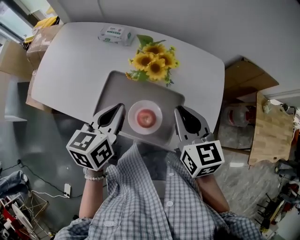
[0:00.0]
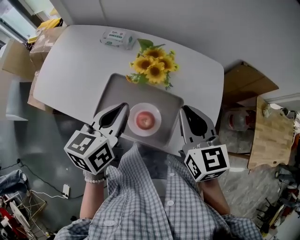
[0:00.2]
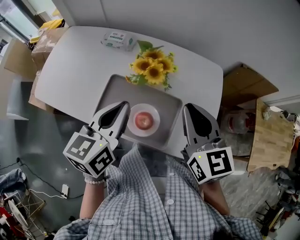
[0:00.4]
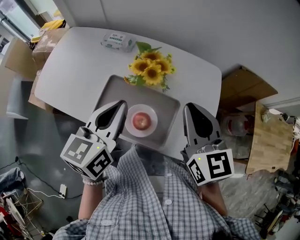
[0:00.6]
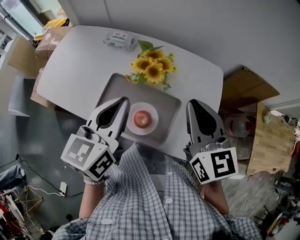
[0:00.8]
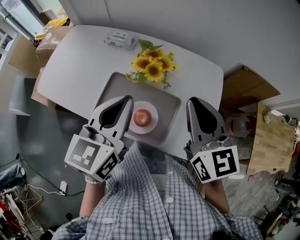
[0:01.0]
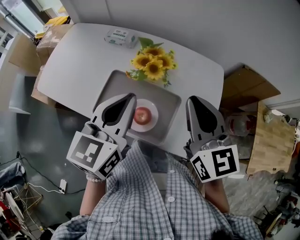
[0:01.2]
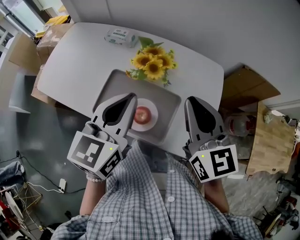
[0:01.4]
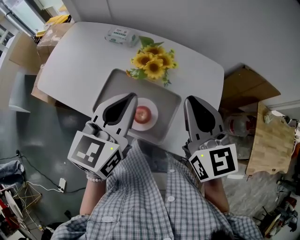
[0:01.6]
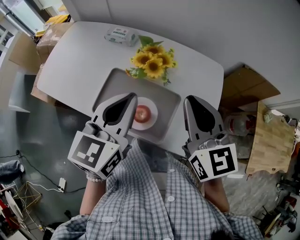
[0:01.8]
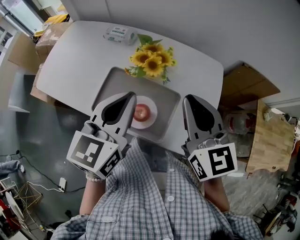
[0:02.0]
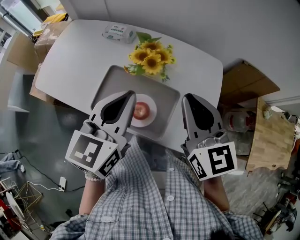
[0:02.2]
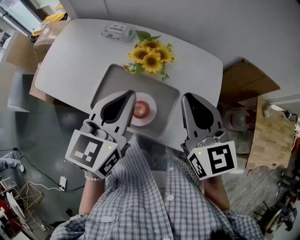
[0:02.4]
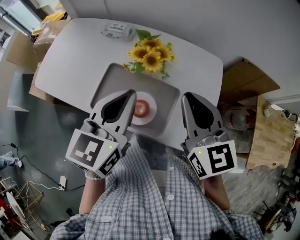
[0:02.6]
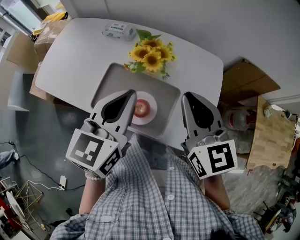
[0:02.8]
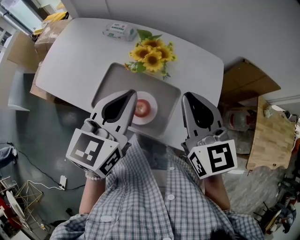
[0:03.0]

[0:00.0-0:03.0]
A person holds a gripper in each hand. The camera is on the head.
0:00.0 to 0:01.6: The left gripper moves upward and to the right, about 10 cm, and swivels roughly 20 degrees. Meanwhile the right gripper is displaced upward by roughly 10 cm.
0:01.6 to 0:03.0: The grippers make only small movements.

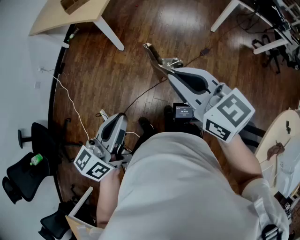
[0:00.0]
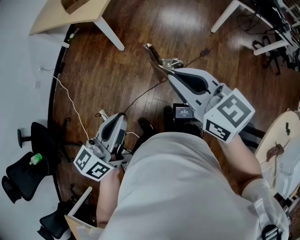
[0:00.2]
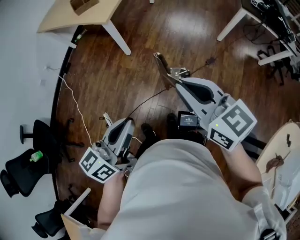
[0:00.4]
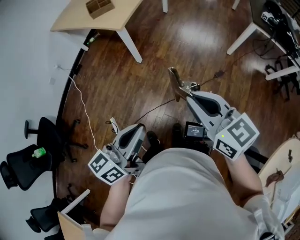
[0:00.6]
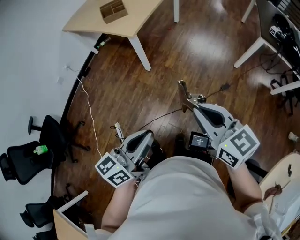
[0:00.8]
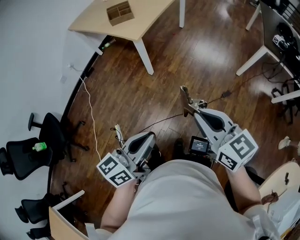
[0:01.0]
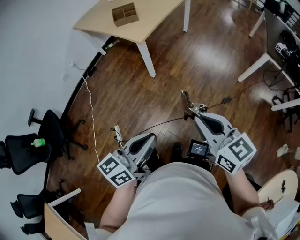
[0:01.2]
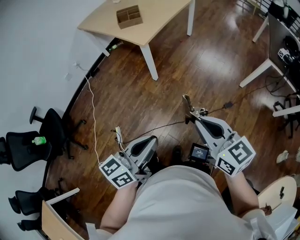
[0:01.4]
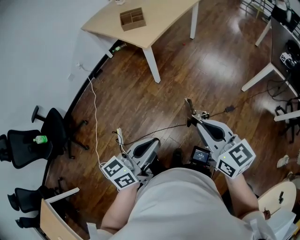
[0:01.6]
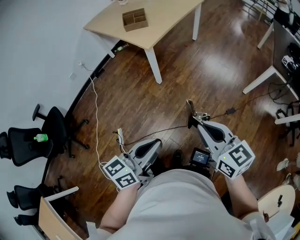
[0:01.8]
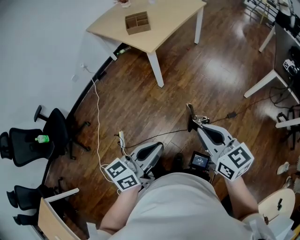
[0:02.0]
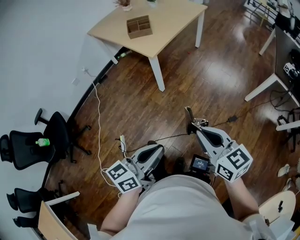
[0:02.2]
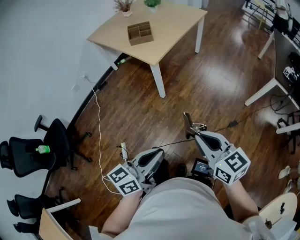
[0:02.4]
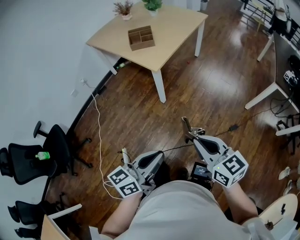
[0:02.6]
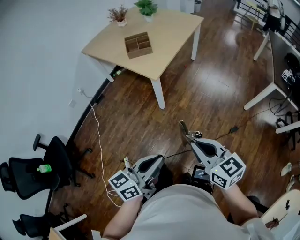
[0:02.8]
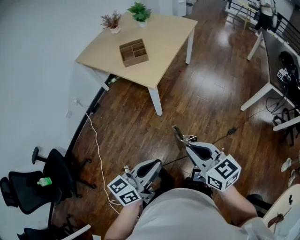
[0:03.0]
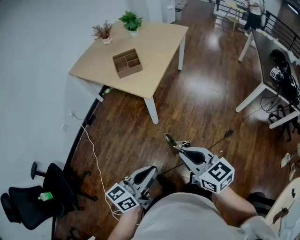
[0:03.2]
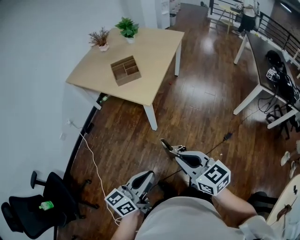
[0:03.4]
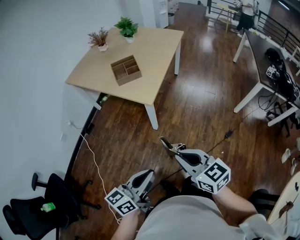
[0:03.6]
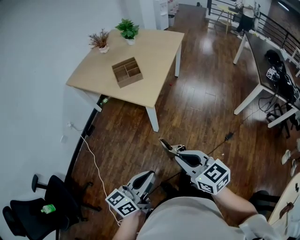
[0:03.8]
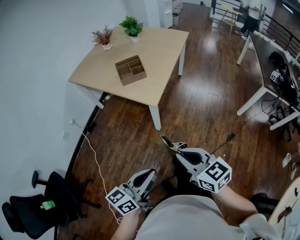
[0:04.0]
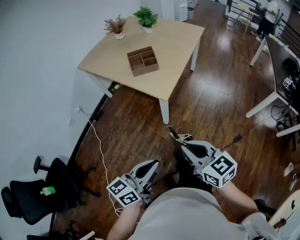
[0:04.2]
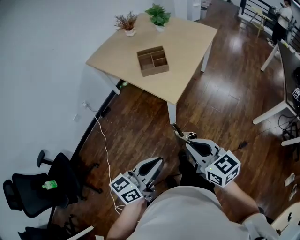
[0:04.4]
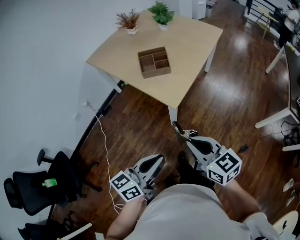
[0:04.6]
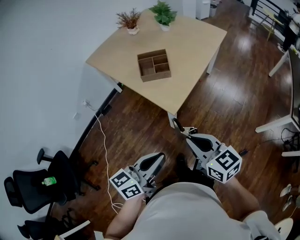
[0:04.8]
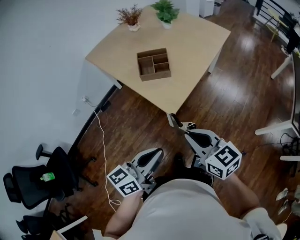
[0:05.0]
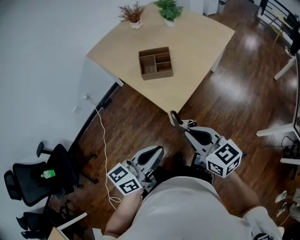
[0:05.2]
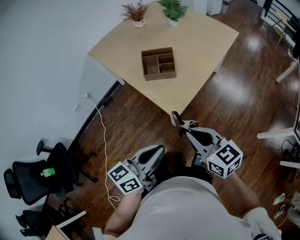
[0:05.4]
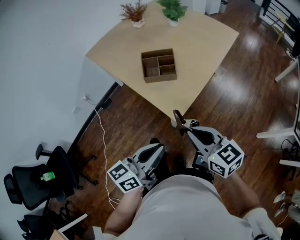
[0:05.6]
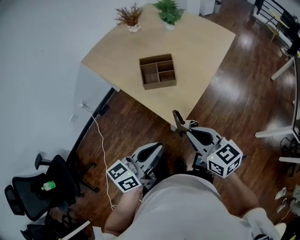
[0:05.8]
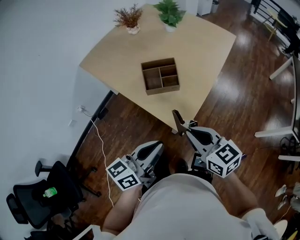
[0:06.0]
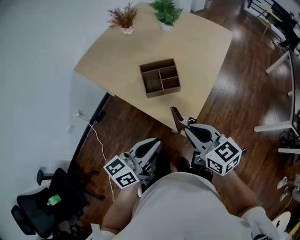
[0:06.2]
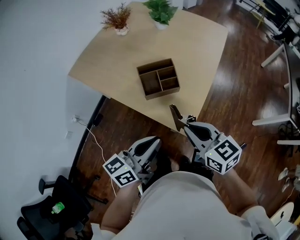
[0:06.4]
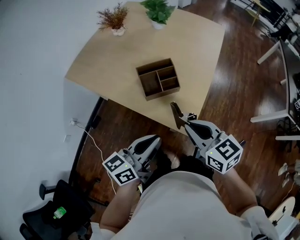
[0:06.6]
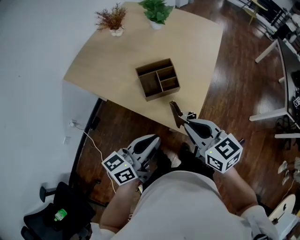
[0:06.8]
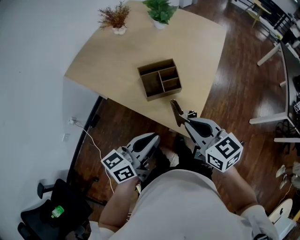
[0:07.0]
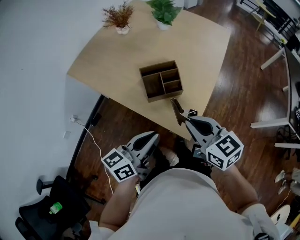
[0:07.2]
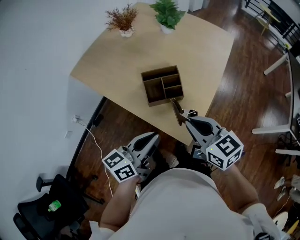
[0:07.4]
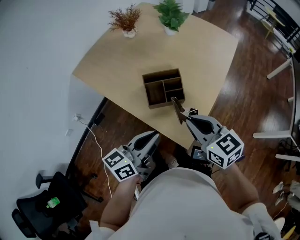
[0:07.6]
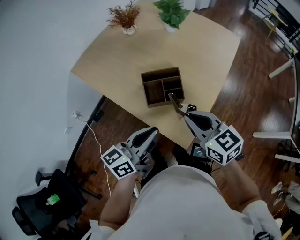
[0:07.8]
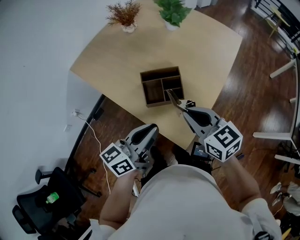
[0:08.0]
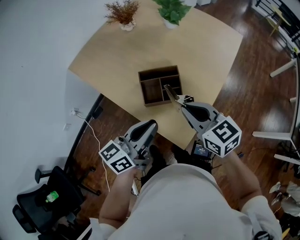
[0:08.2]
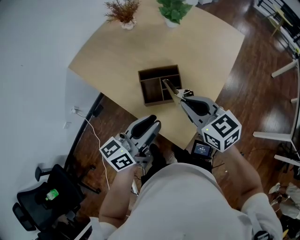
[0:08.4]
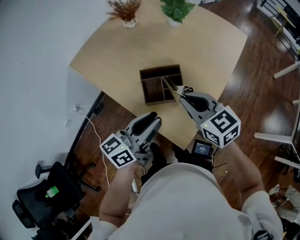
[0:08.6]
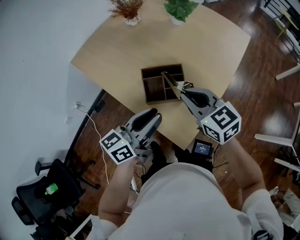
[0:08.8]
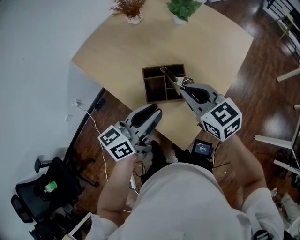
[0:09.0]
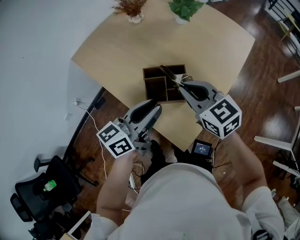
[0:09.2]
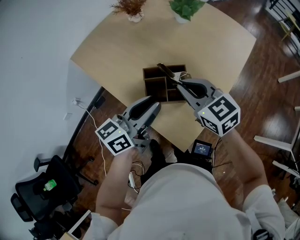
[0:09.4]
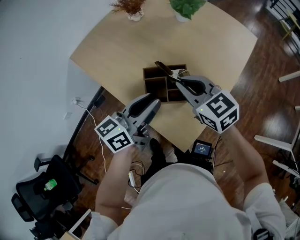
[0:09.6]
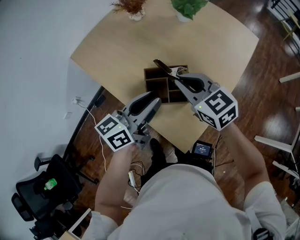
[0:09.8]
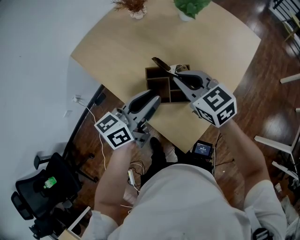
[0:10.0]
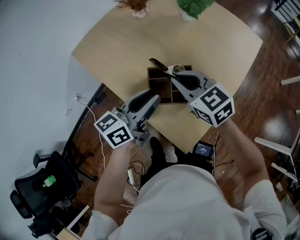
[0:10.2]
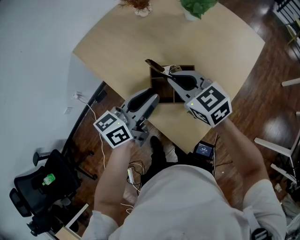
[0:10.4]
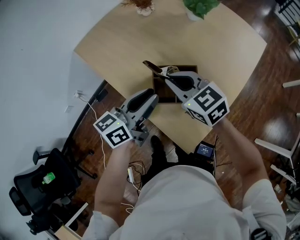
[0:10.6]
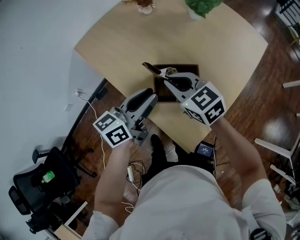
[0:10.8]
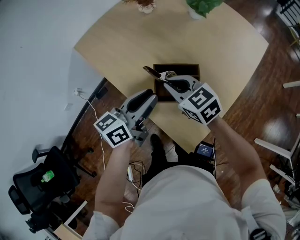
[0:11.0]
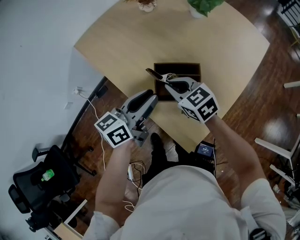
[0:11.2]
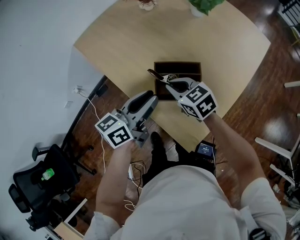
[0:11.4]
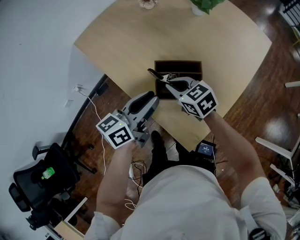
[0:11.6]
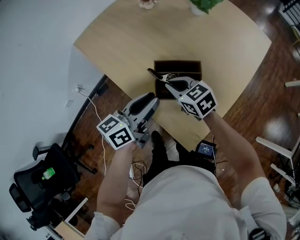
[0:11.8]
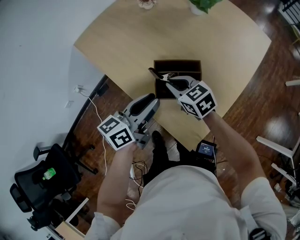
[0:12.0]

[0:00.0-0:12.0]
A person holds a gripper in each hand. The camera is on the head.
0:00.0 to 0:01.6: The left gripper shifts by approximately 5 cm.
0:01.6 to 0:03.0: The two grippers go approximately 20 cm forward and to the left.
0:03.0 to 0:04.4: The grippers both shift forward and to the left by some 15 cm.
0:04.4 to 0:06.0: The two grippers go approximately 30 cm forward.
0:06.0 to 0:07.6: The two grippers go some 15 cm forward.
0:07.6 to 0:09.0: Both grippers travel together forward, approximately 10 cm.
0:09.0 to 0:10.4: The left gripper heads forward, covering approximately 5 cm, while the right gripper is displaced to the left and forward by about 10 cm.
0:10.4 to 0:12.0: The right gripper moves downward, some 10 cm; the left gripper moves roughly 5 cm.

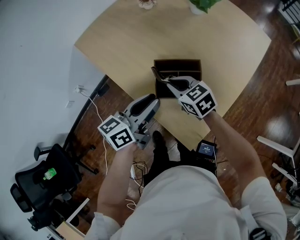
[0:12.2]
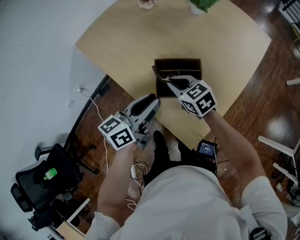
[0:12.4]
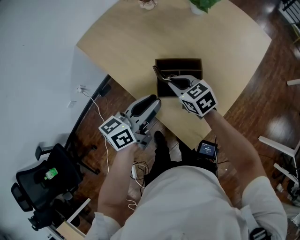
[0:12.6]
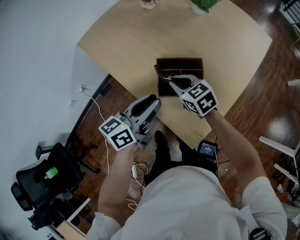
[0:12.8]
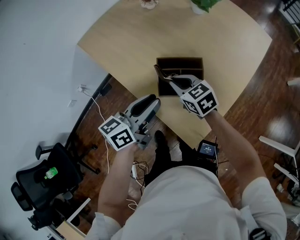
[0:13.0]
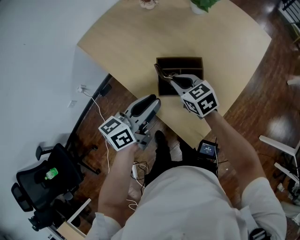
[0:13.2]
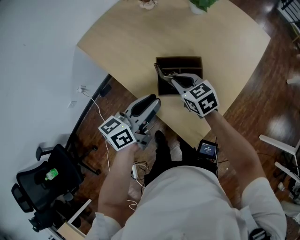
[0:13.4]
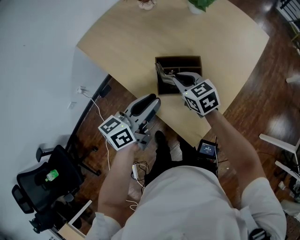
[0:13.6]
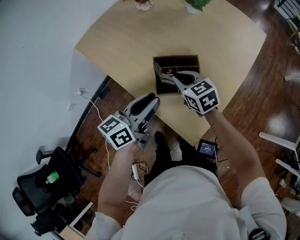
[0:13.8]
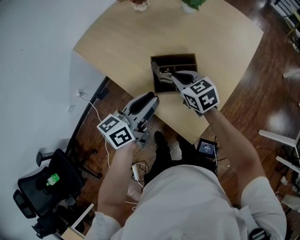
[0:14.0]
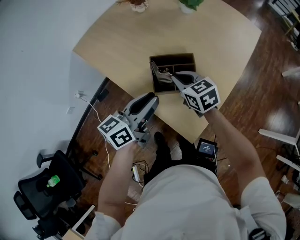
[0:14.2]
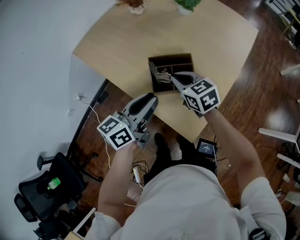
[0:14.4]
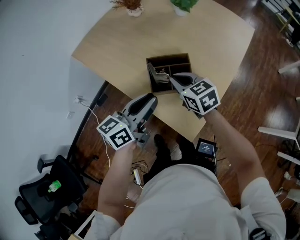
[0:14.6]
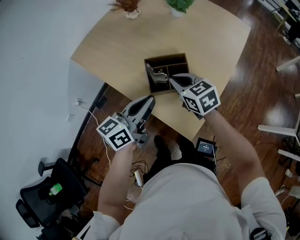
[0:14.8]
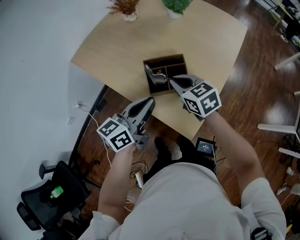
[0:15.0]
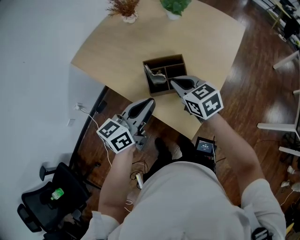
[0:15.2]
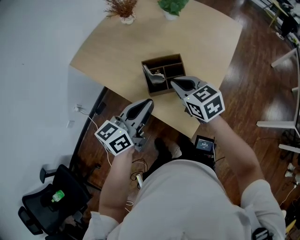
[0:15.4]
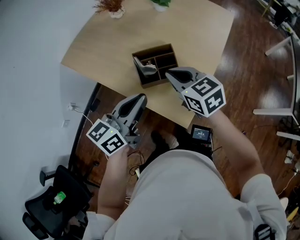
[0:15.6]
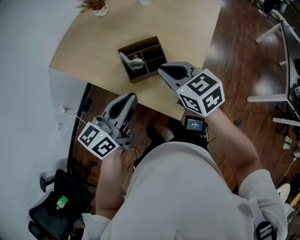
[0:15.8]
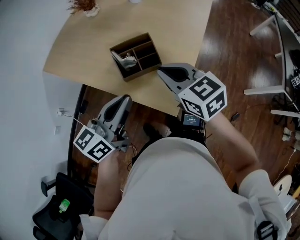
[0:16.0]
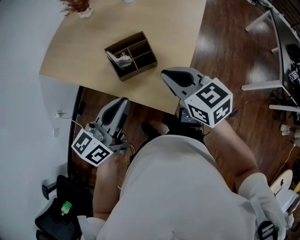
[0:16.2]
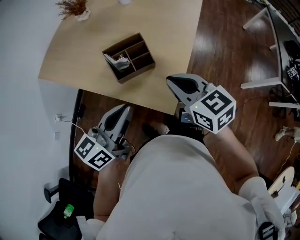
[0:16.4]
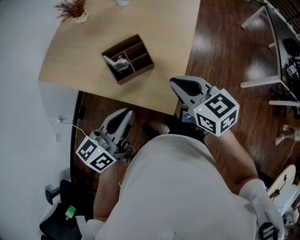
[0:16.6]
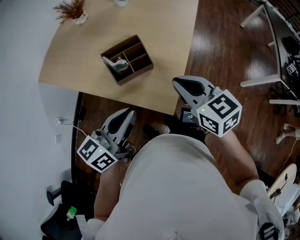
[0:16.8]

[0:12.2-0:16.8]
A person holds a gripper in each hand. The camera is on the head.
0:12.2 to 0:13.8: The grippers move only a little.
0:13.8 to 0:15.2: The left gripper ends up roughly 5 cm from where it was, while the right gripper goes about 10 cm upward and backward.
0:15.2 to 0:16.8: The right gripper is displaced to the right, backward and upward by some 20 cm. The left gripper moves backward, some 10 cm.

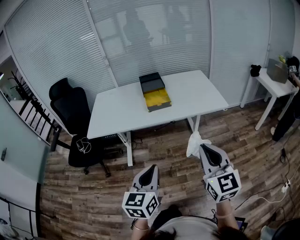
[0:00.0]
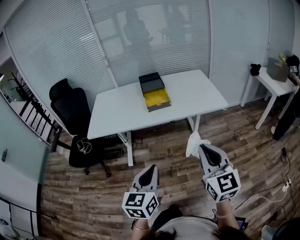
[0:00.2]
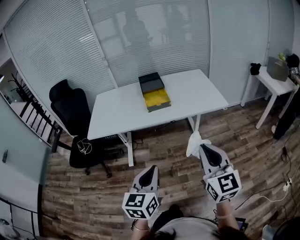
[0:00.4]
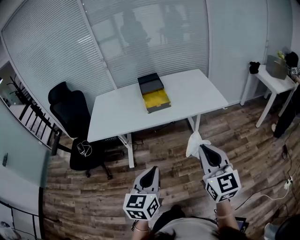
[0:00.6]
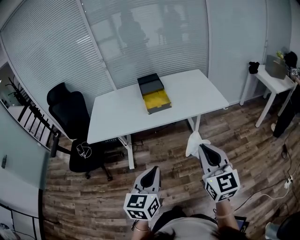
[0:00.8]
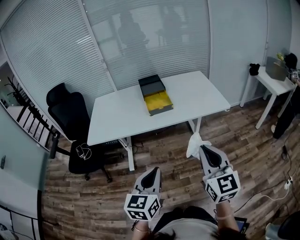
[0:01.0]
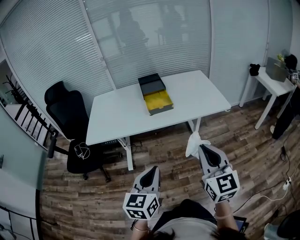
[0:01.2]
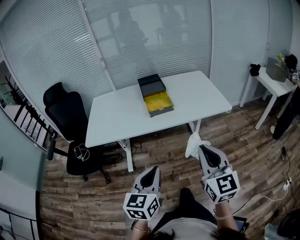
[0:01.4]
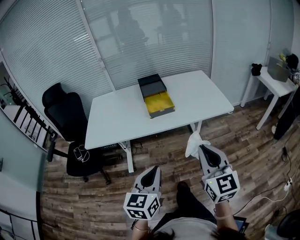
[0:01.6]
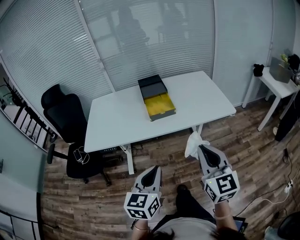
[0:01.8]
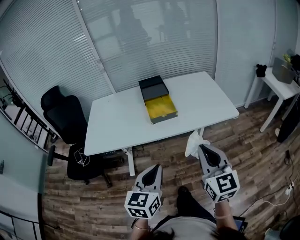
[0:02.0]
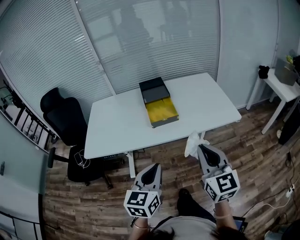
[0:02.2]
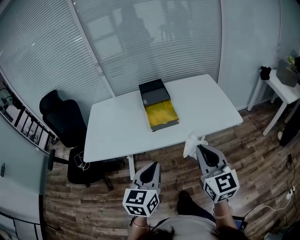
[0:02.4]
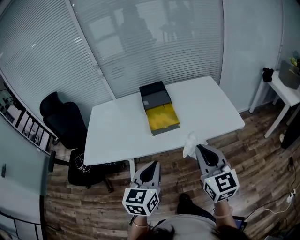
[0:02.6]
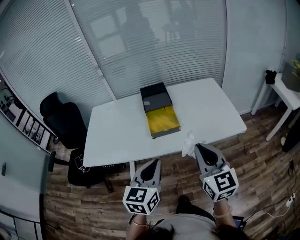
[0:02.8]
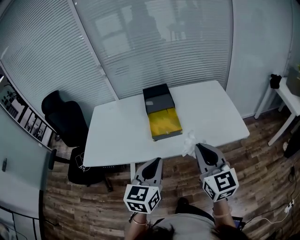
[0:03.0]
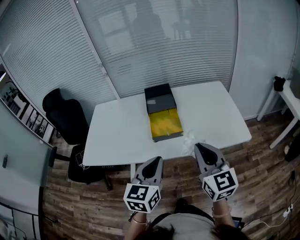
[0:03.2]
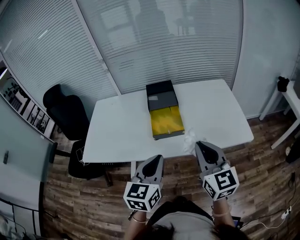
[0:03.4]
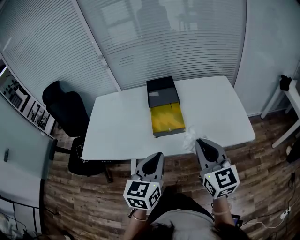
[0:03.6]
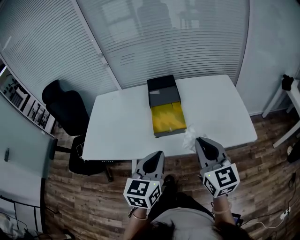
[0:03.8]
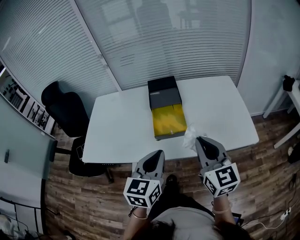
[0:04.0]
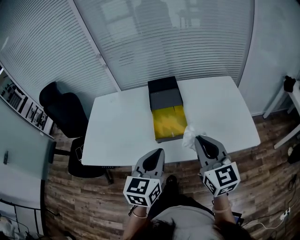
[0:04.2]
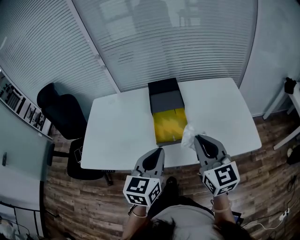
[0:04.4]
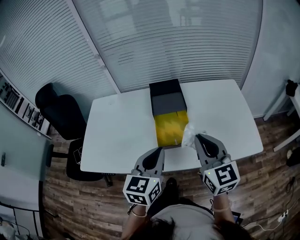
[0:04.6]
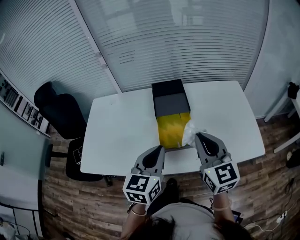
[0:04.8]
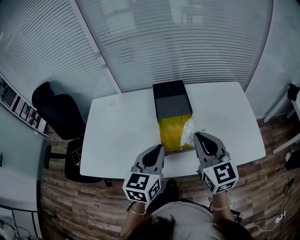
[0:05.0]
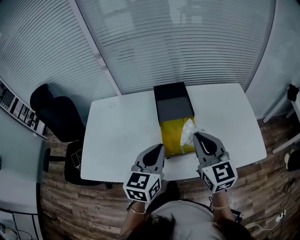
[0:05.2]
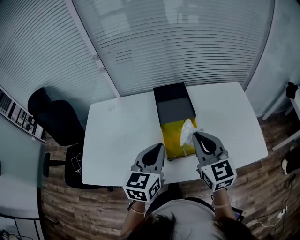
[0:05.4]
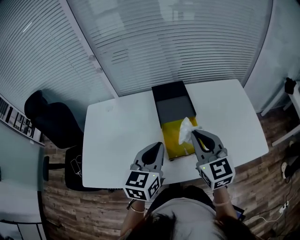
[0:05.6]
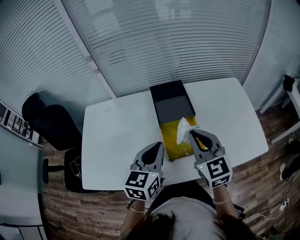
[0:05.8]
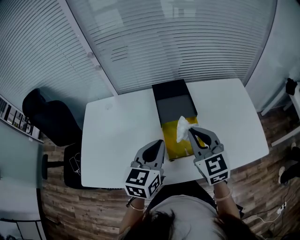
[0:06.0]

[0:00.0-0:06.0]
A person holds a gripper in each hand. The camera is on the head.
0:00.0 to 0:01.6: Both grippers travel together forward, about 10 cm.
0:01.6 to 0:03.0: The grippers both shift forward by about 20 cm.
0:03.0 to 0:04.4: Both grippers travel together forward, about 15 cm.
0:04.4 to 0:06.0: Both grippers travel together forward and to the left, some 15 cm.
